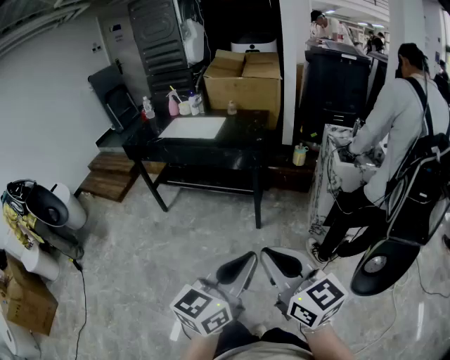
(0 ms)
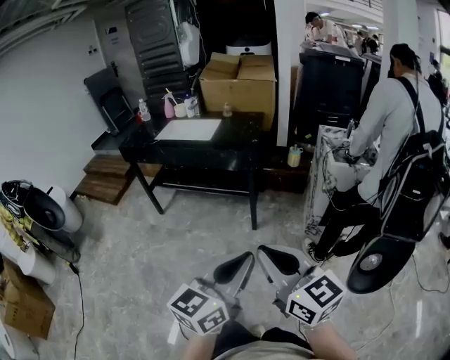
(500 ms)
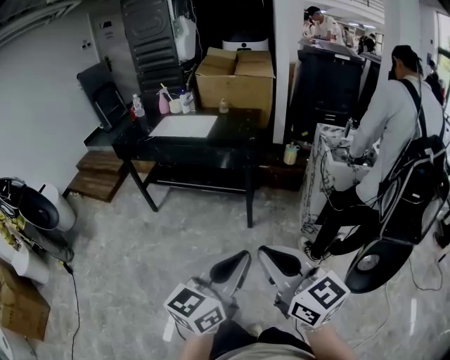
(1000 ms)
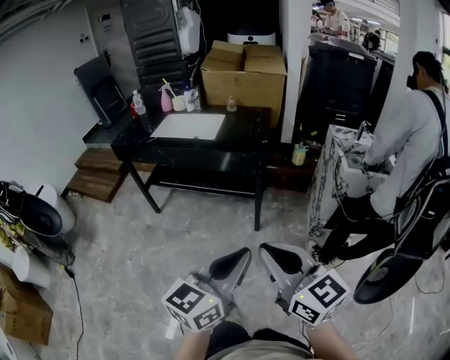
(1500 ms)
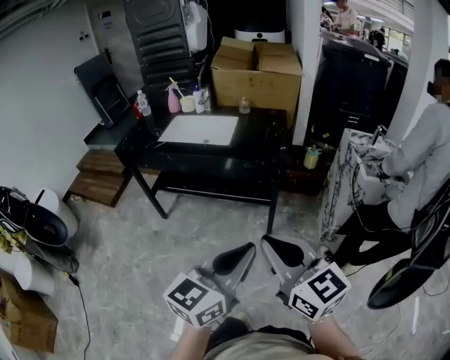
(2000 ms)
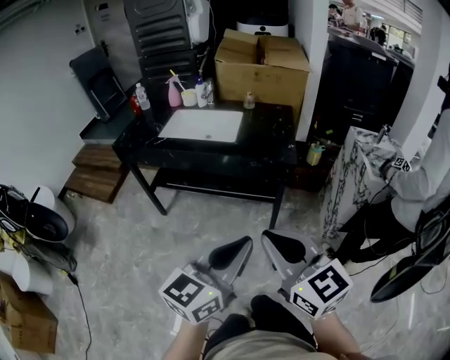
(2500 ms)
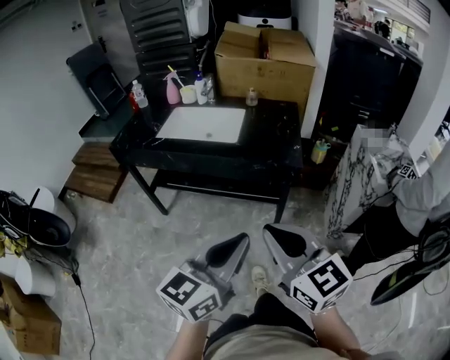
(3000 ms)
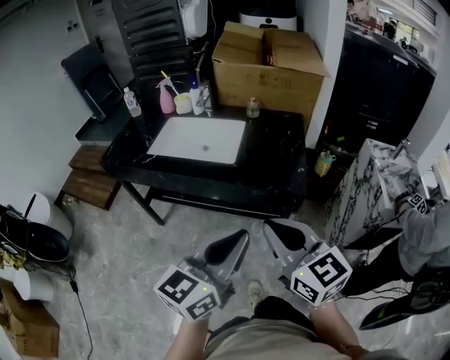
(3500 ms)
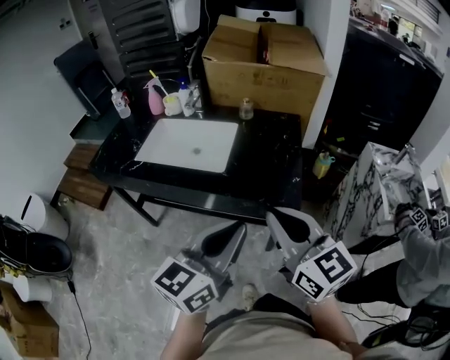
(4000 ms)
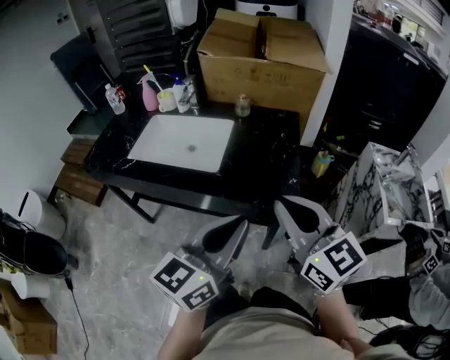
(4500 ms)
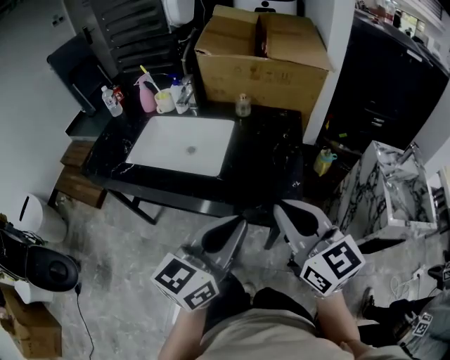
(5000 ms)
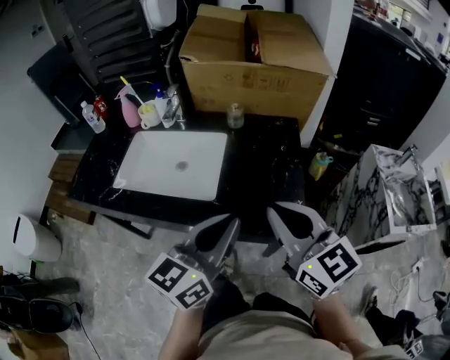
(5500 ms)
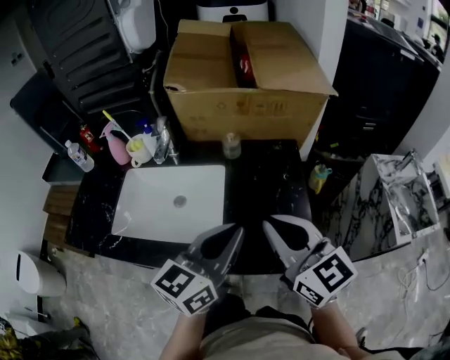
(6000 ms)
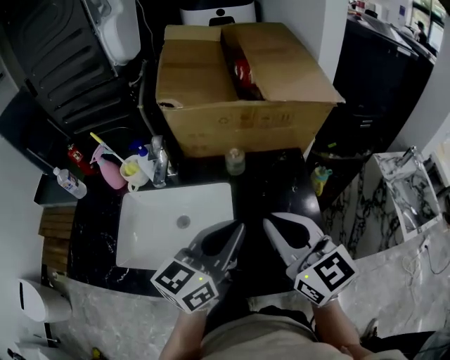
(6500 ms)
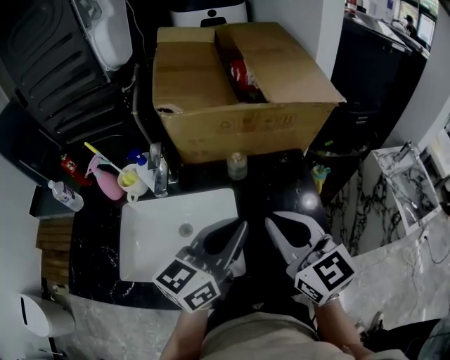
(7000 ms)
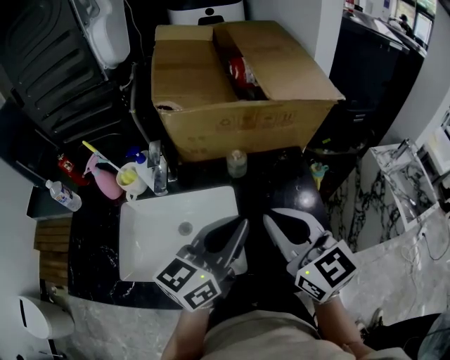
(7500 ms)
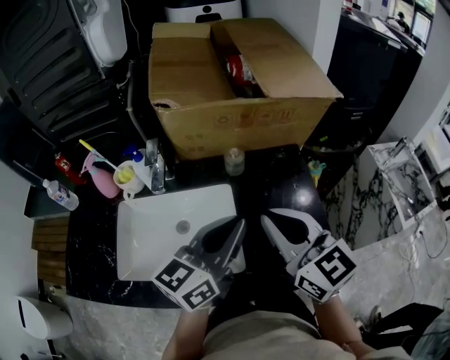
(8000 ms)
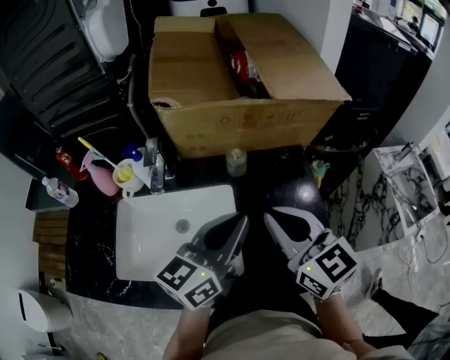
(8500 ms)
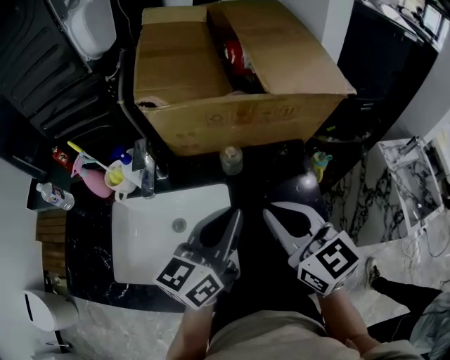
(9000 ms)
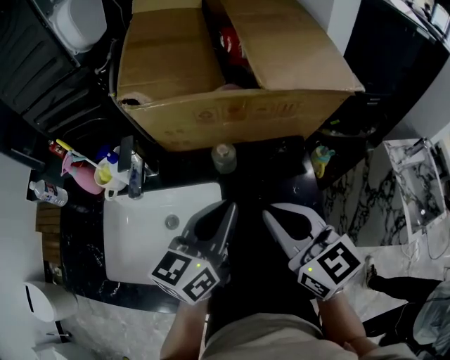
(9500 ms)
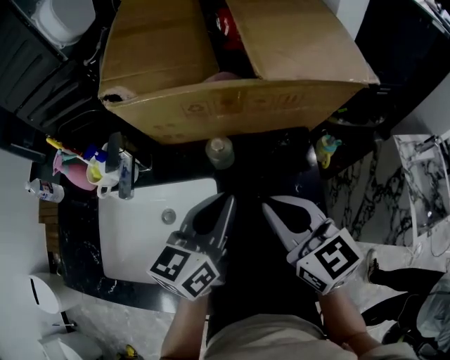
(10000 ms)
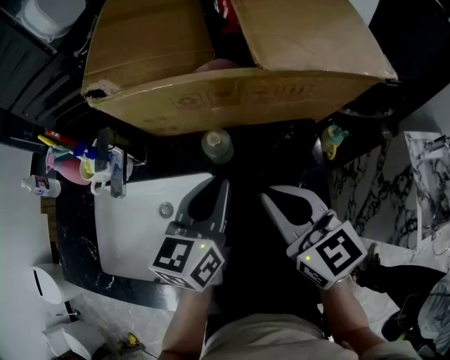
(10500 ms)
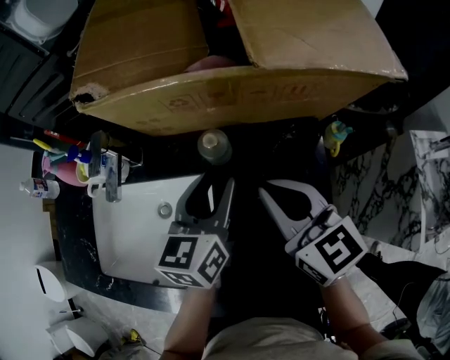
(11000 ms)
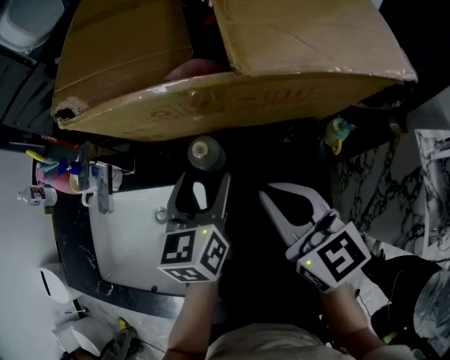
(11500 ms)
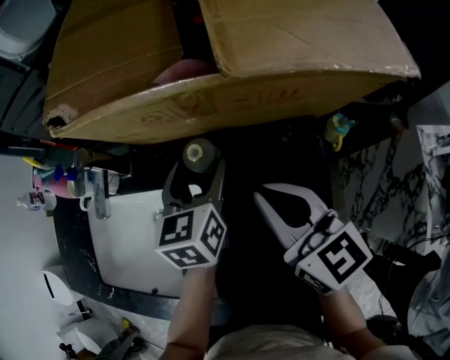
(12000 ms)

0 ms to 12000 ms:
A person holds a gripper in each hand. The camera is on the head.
0 ms to 2000 ms: Both grippers move forward and to the left, roughly 25 cm.
2000 ms to 4000 ms: The grippers both shift forward by approximately 35 cm.
4000 ms to 6000 ms: The grippers both shift forward by about 25 cm.
6000 ms to 8000 ms: Both grippers move forward and to the left, some 15 cm.
8000 ms to 10000 ms: The right gripper goes some 15 cm forward, downward and to the right. Meanwhile the left gripper is displaced forward and downward by roughly 15 cm.
10000 ms to 12000 ms: The right gripper shifts approximately 5 cm forward; the left gripper shifts roughly 15 cm forward and downward, turns by some 30 degrees, and opens up.

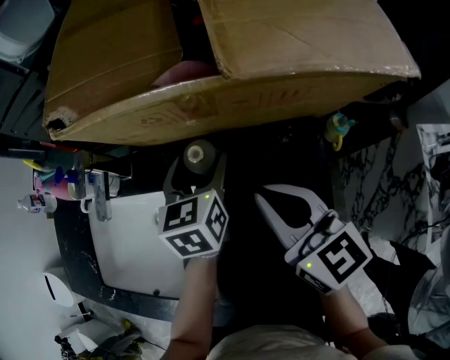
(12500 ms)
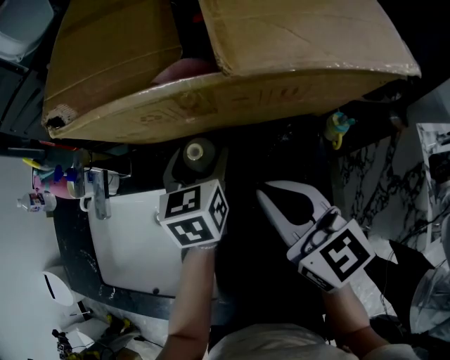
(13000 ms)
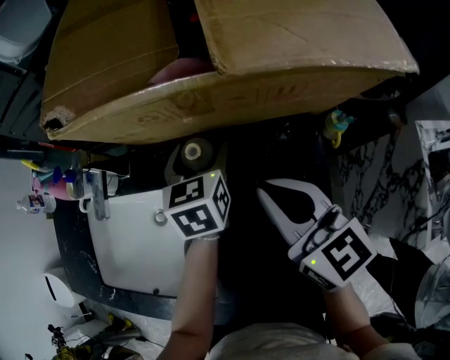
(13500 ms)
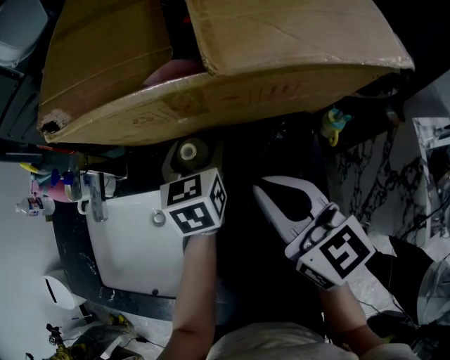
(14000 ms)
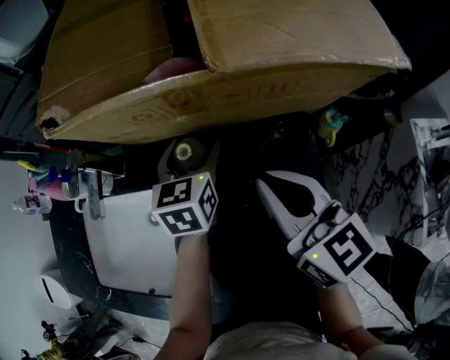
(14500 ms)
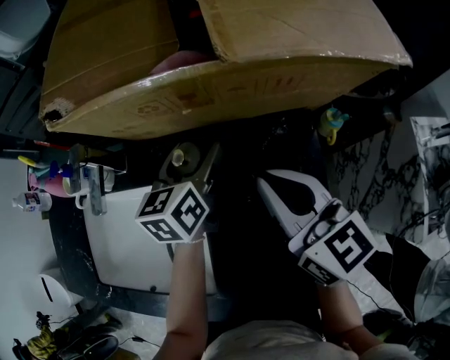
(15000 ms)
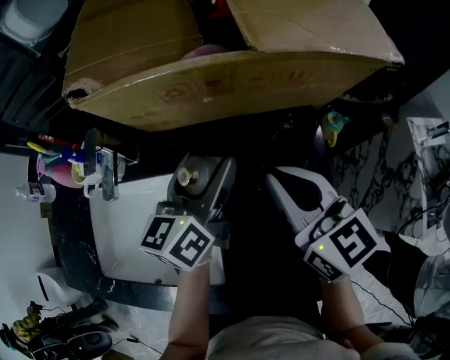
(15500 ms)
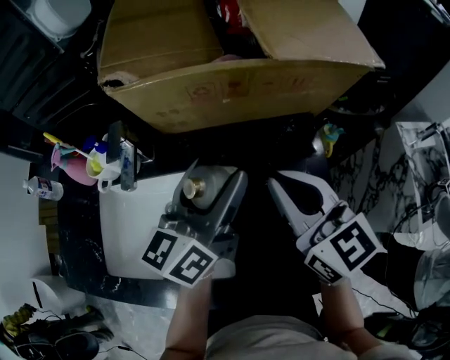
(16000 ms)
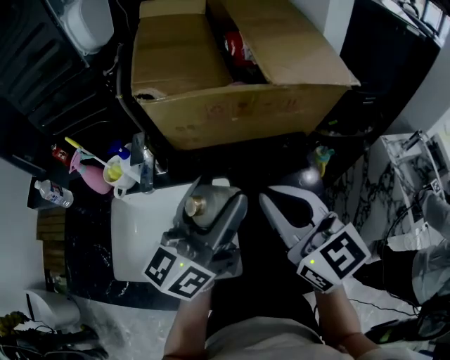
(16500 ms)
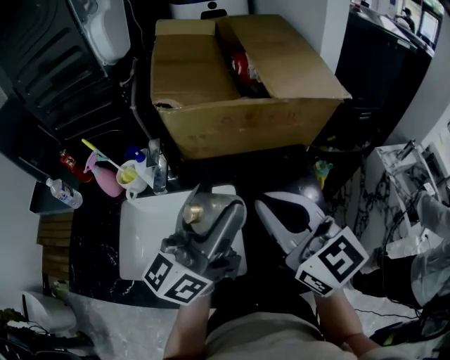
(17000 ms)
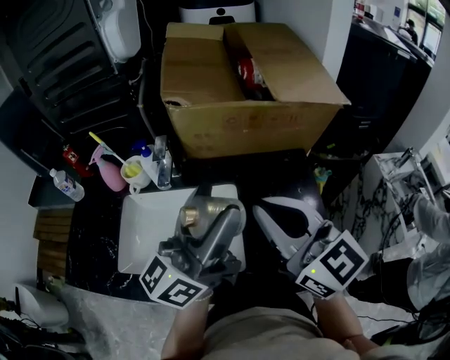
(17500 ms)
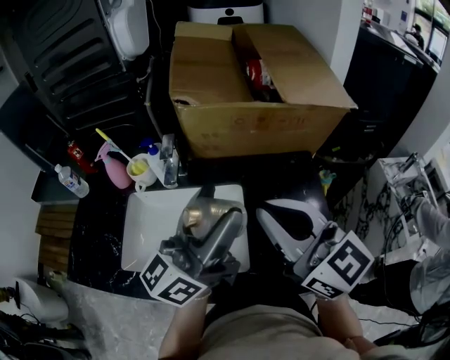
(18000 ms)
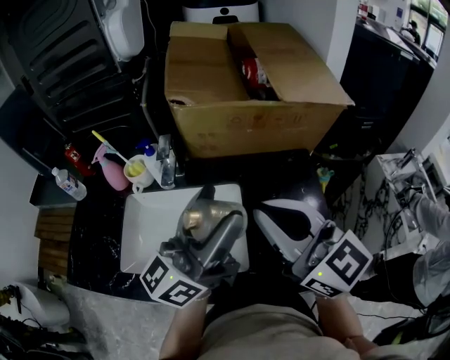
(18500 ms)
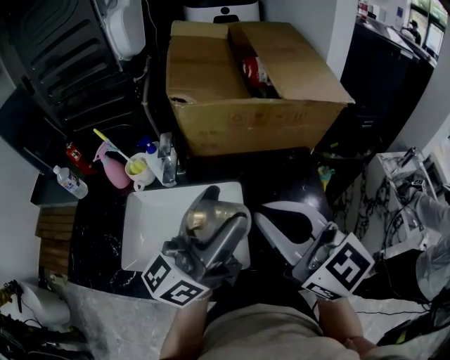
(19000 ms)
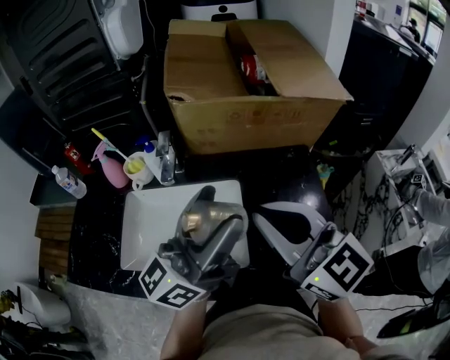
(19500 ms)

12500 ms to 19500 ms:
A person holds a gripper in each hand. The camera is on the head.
12500 ms to 14500 ms: The grippers make only small movements.
14500 ms to 16000 ms: The right gripper is displaced backward, to the left and upward by about 10 cm. The left gripper moves upward and backward, roughly 20 cm, and points its fingers approximately 30 degrees further upward.
16000 ms to 17500 ms: The grippers both shift backward, upward and to the left by some 20 cm. The left gripper changes its angle by approximately 30 degrees.
17500 ms to 19500 ms: The grippers stay close to where they were, moving slightly.

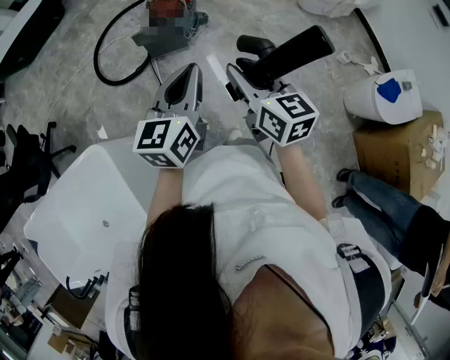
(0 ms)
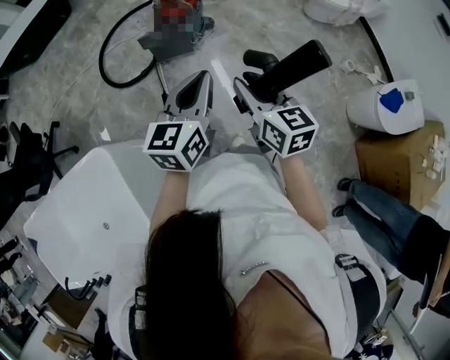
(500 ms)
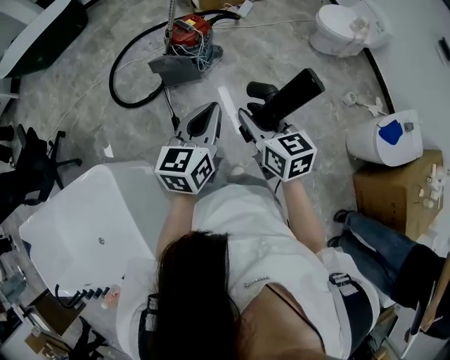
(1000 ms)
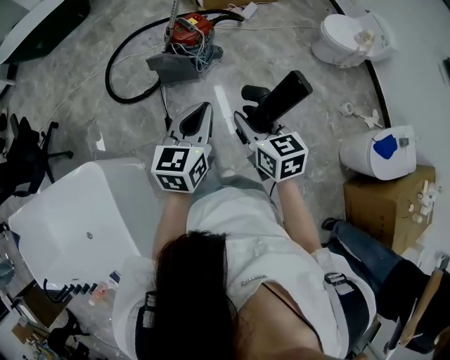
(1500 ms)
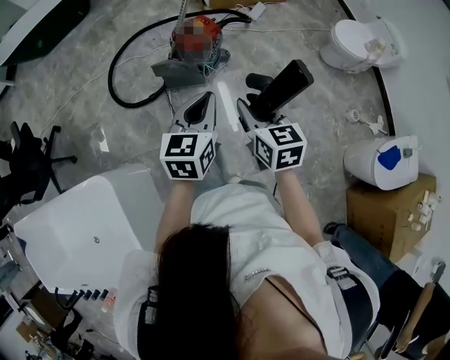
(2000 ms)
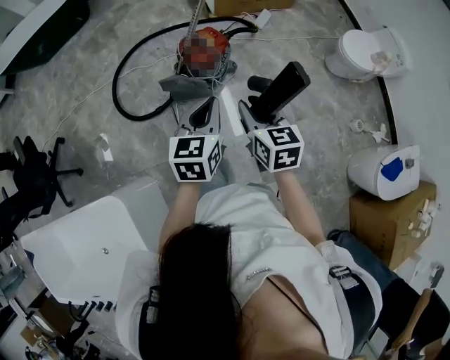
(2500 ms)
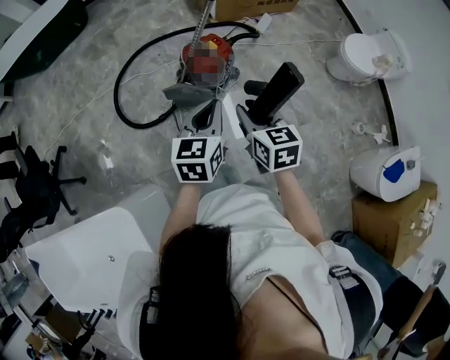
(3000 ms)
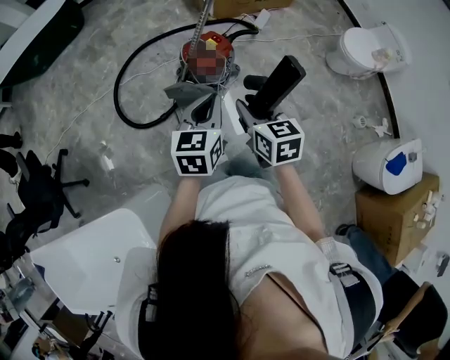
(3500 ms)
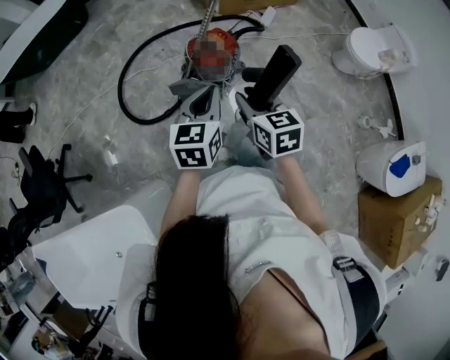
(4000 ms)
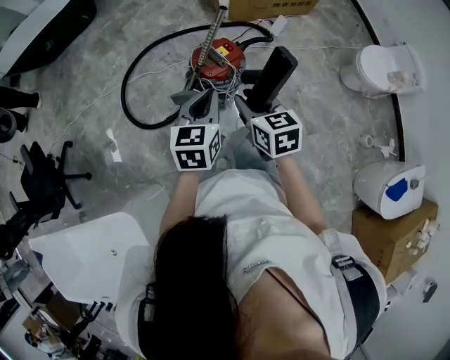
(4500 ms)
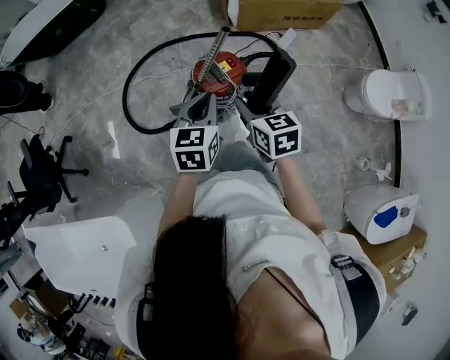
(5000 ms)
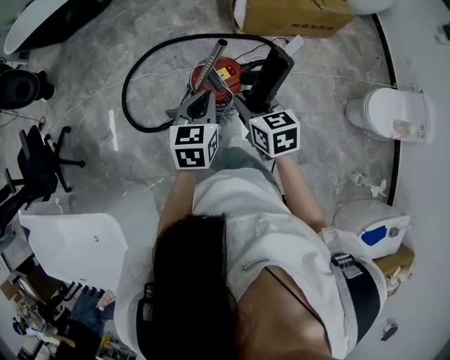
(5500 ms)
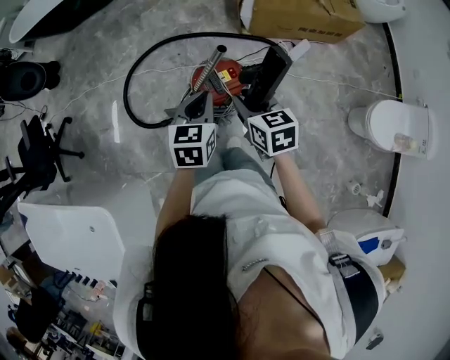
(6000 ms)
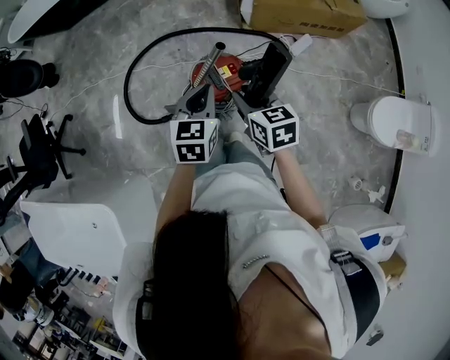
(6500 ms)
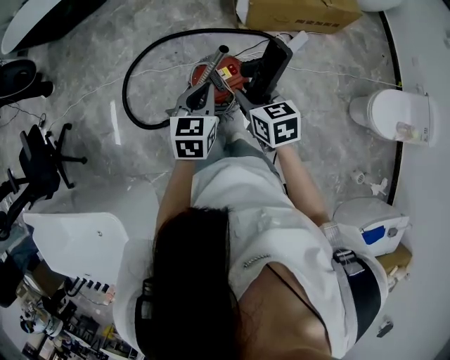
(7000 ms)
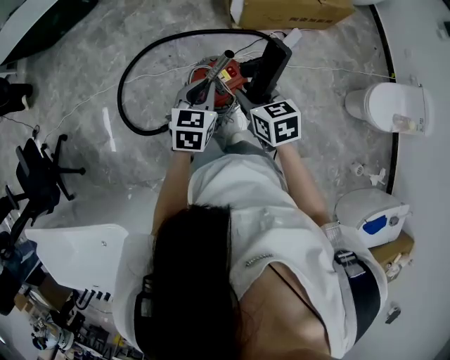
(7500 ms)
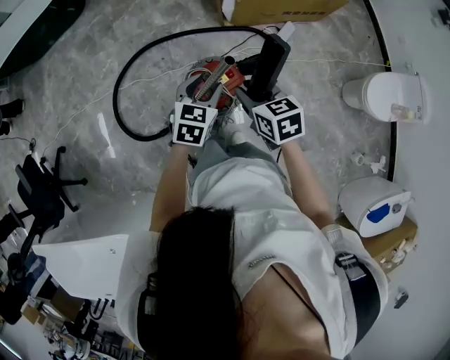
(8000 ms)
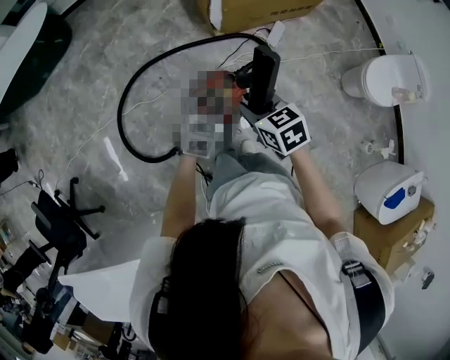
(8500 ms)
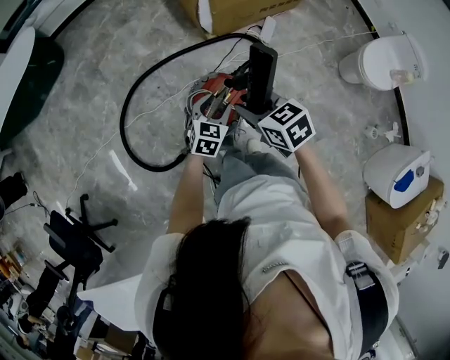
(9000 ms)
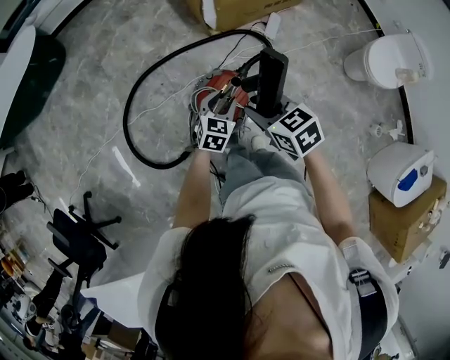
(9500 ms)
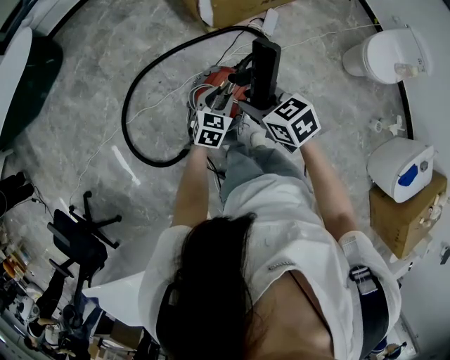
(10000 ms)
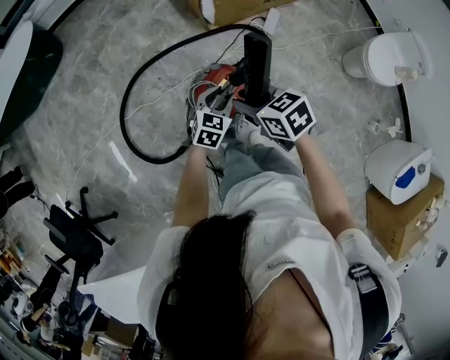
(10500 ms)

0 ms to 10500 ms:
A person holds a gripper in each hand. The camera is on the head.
0 ms to 2000 ms: The grippers both shift forward by roughly 15 cm.
2000 ms to 4000 ms: The two grippers go approximately 20 cm forward and to the left.
4000 ms to 6500 ms: The two grippers go some 30 cm forward and to the right. The right gripper swivels approximately 20 degrees.
6500 ms to 8500 ms: The left gripper heads downward and forward, covering some 15 cm, rotates some 30 degrees, and opens its fingers; the right gripper shifts some 10 cm forward.
8500 ms to 10500 ms: The left gripper changes place by some 5 cm.
